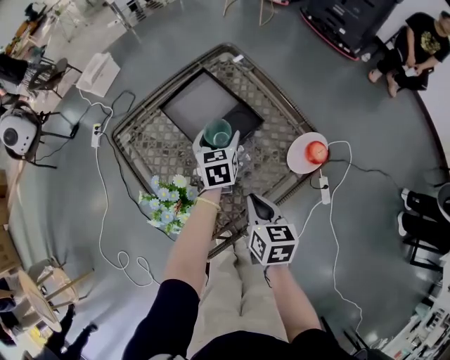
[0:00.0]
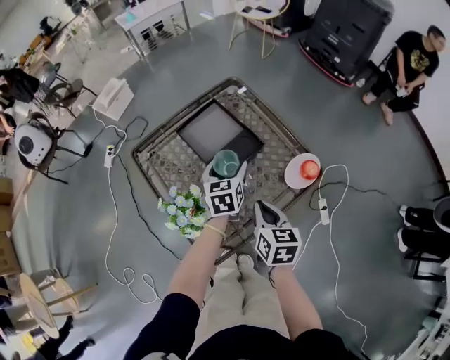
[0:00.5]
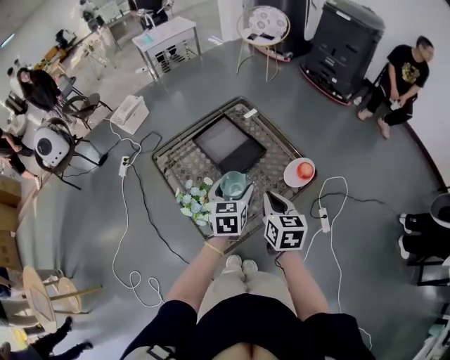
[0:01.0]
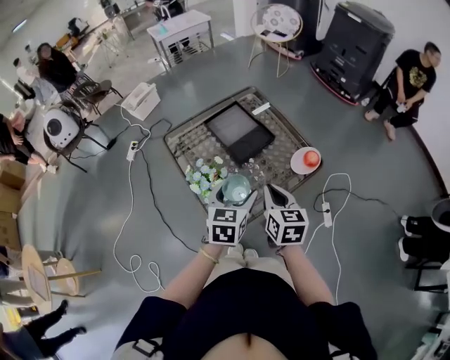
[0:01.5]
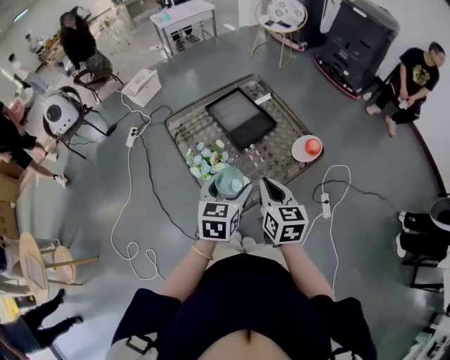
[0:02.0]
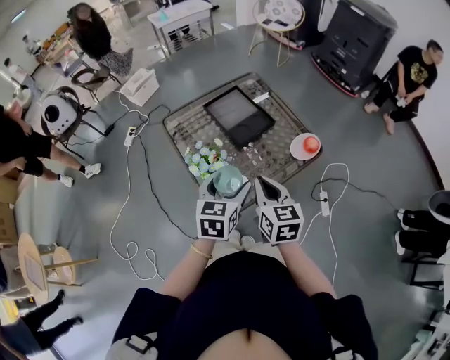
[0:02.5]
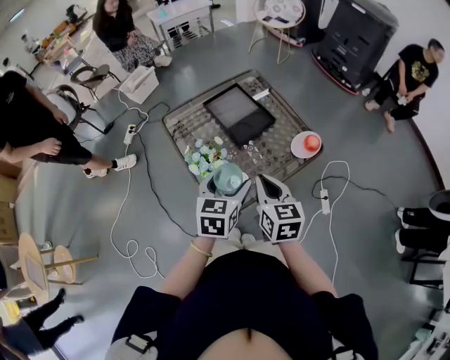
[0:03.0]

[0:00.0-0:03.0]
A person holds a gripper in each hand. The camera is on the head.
0:00.0 to 0:01.5: The right gripper is displaced upward and backward by approximately 15 cm; the left gripper goes some 35 cm backward and upward.
0:01.5 to 0:03.0: The grippers stay close to where they were, moving slightly.

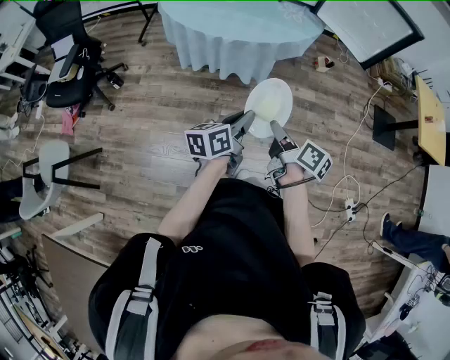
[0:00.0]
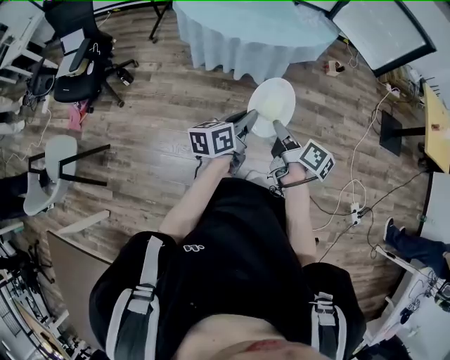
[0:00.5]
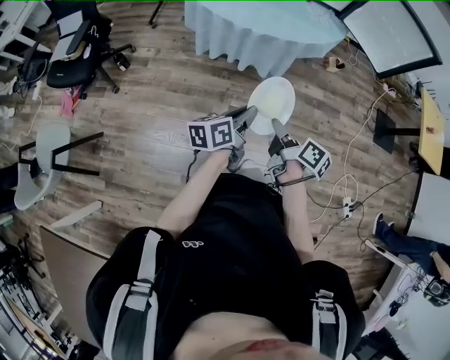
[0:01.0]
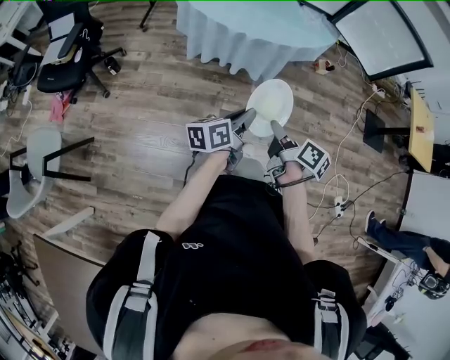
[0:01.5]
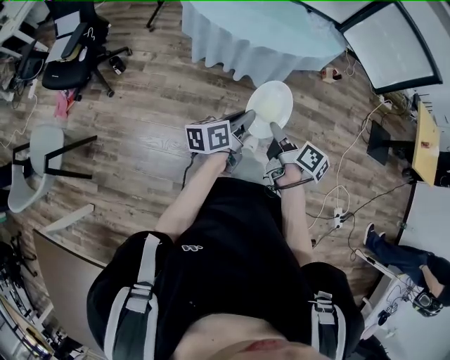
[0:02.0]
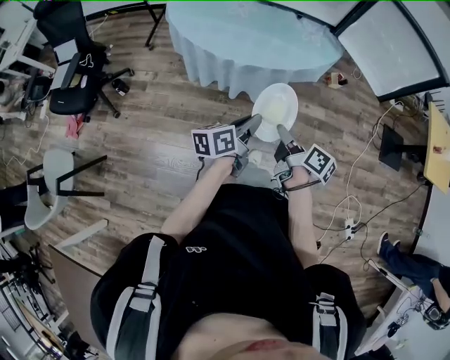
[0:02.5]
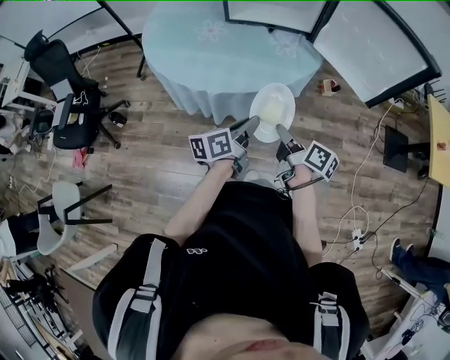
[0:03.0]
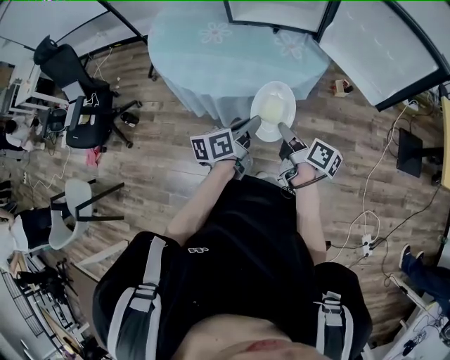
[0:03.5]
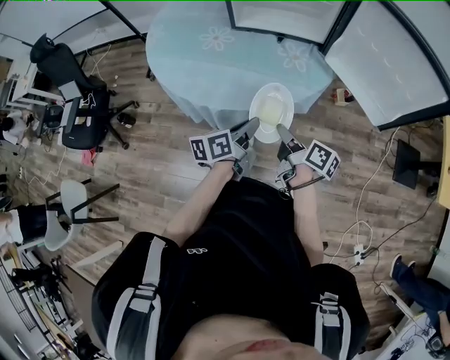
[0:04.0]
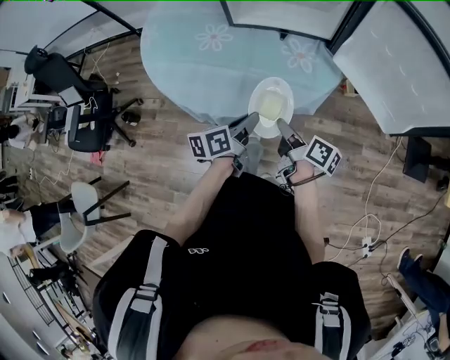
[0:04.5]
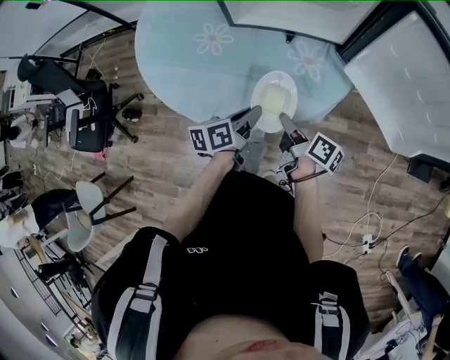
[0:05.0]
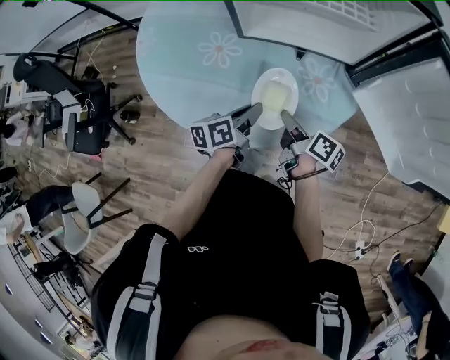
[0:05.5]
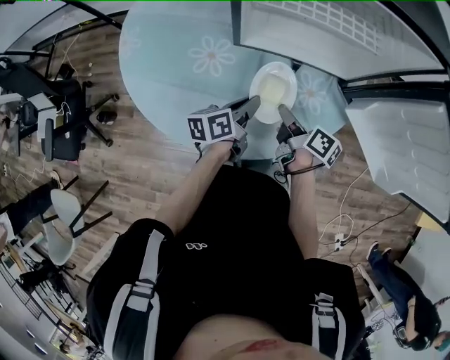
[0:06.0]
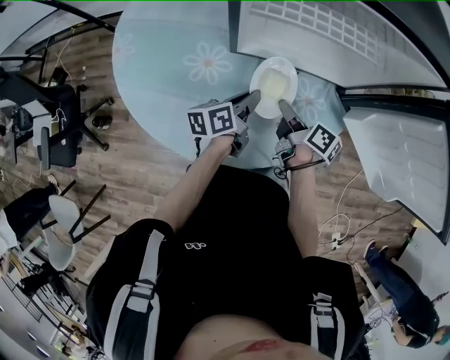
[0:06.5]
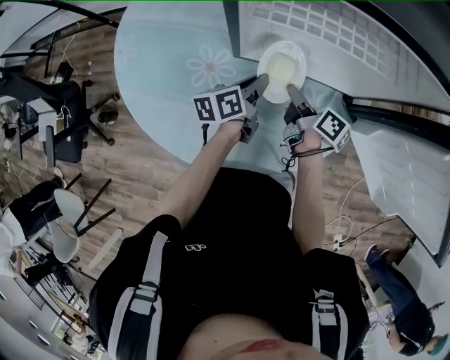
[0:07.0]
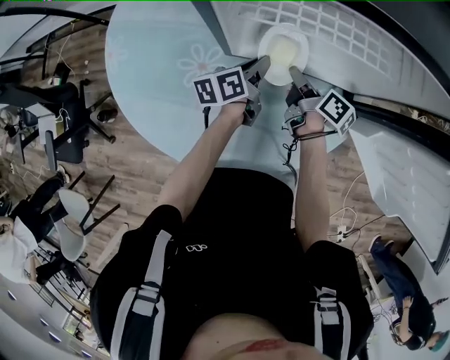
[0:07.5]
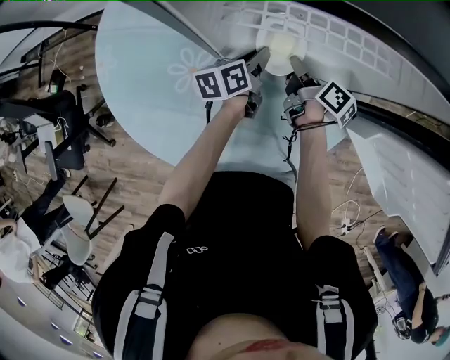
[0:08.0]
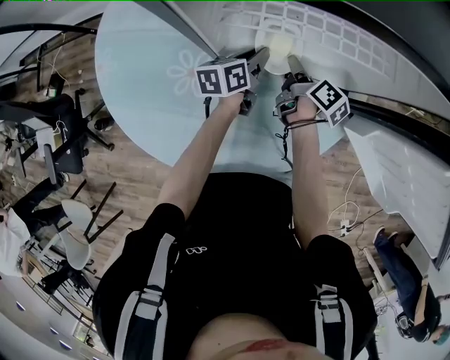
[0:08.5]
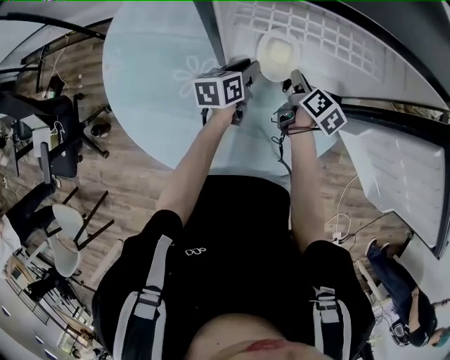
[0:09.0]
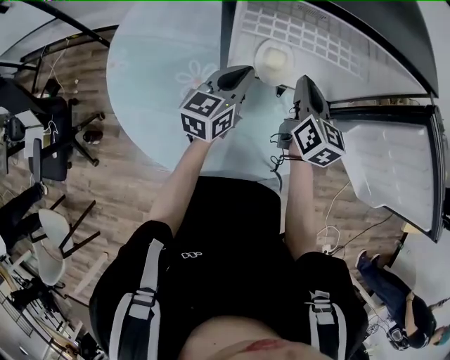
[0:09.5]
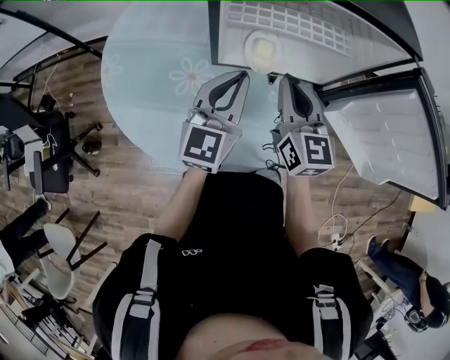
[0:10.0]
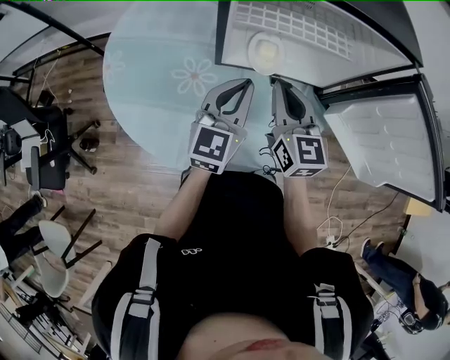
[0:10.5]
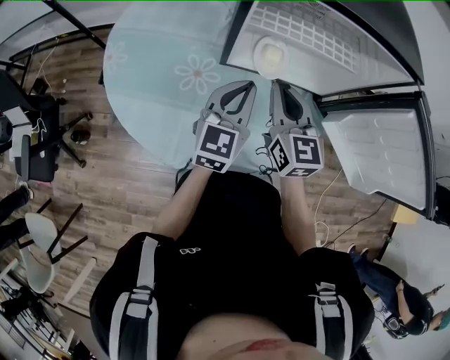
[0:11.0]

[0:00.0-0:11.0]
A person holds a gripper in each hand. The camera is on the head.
0:00.0 to 0:02.0: Both grippers move to the left, some 10 cm.
0:02.0 to 0:03.5: The grippers both shift forward and to the right by some 30 cm.
0:03.5 to 0:05.5: The two grippers go roughly 25 cm forward.
0:05.5 to 0:07.5: The grippers both shift forward by about 25 cm.
0:07.5 to 0:09.0: The right gripper swivels some 20 degrees.
0:09.0 to 0:11.0: The left gripper goes some 20 cm upward and backward, rotates some 40 degrees, and closes its fingers. Meanwhile the right gripper travels upward, backward and to the left by some 25 cm, and rotates around the line of its fingers by some 50 degrees, counterclockwise from behind.

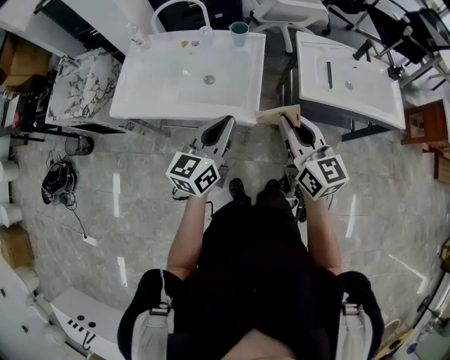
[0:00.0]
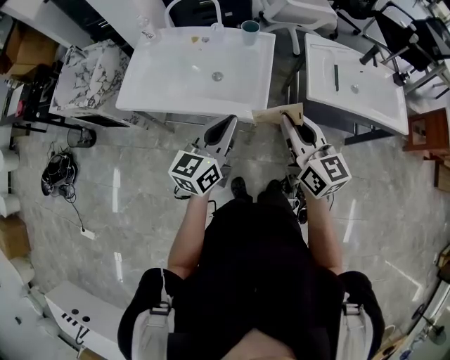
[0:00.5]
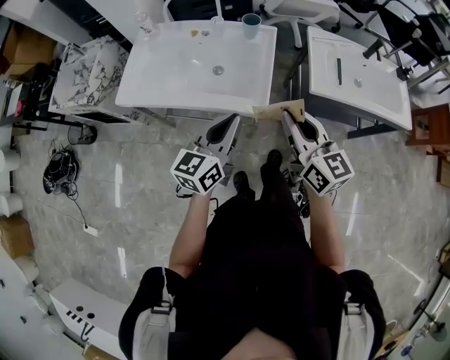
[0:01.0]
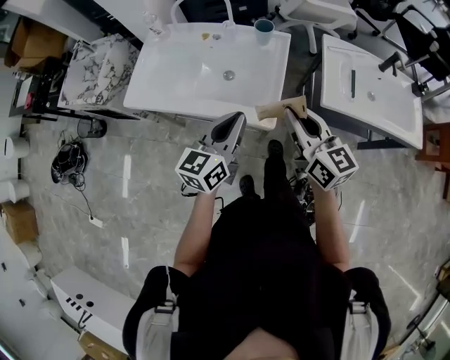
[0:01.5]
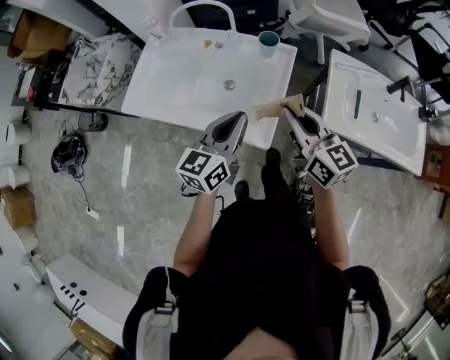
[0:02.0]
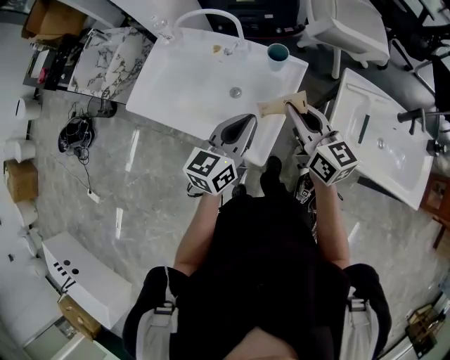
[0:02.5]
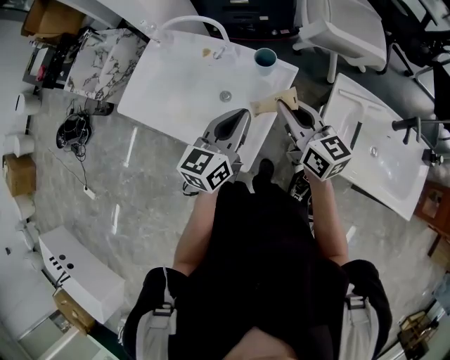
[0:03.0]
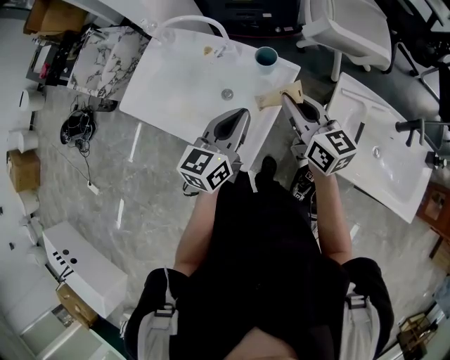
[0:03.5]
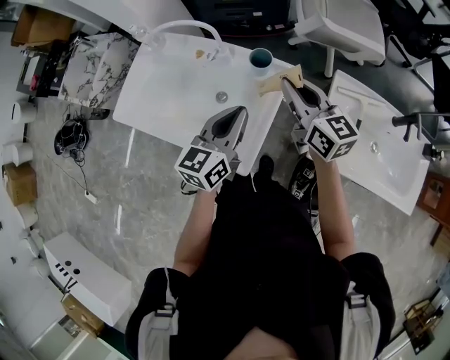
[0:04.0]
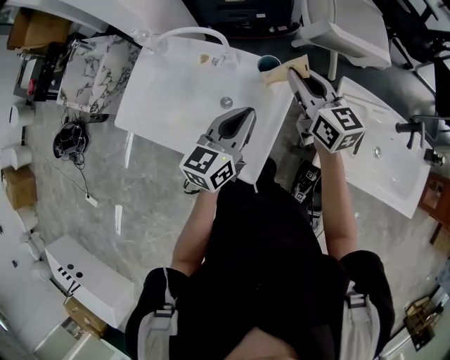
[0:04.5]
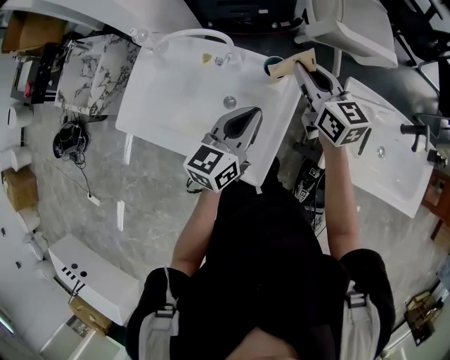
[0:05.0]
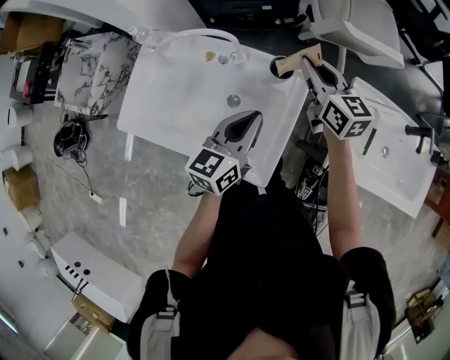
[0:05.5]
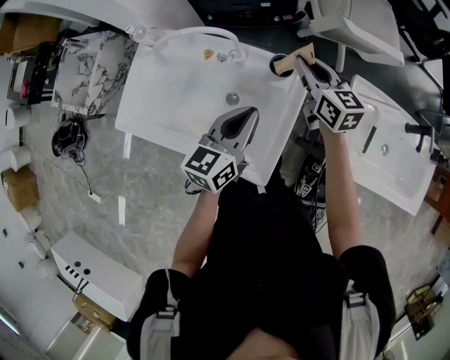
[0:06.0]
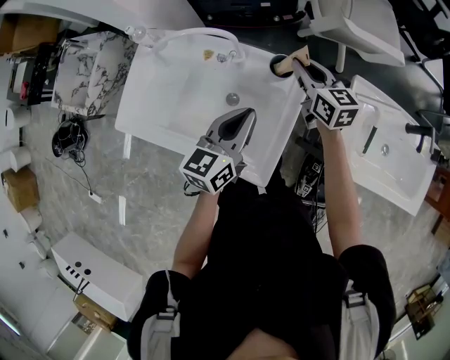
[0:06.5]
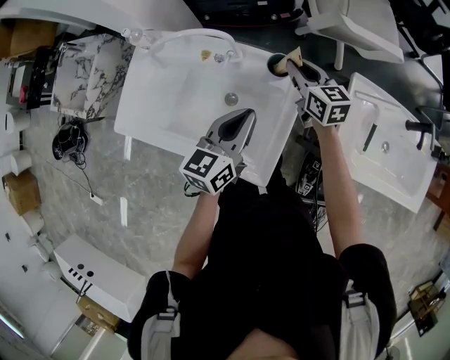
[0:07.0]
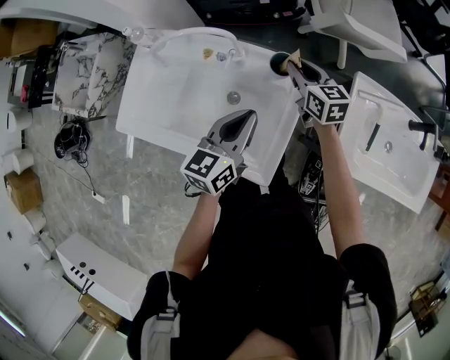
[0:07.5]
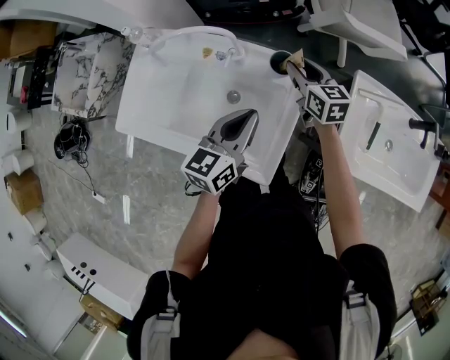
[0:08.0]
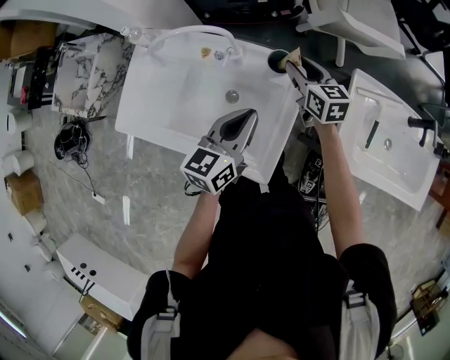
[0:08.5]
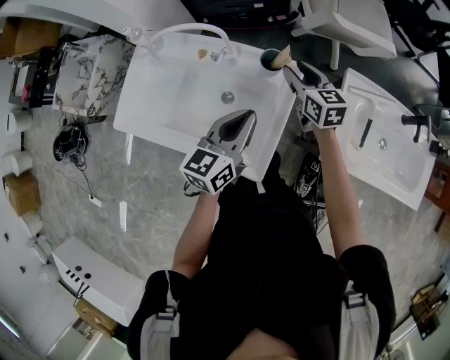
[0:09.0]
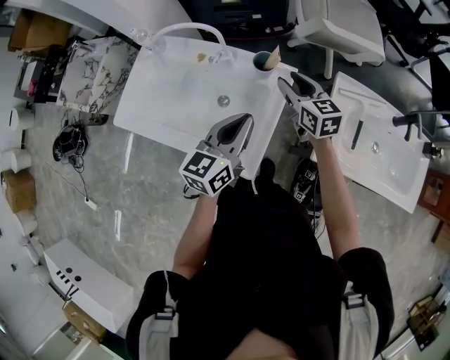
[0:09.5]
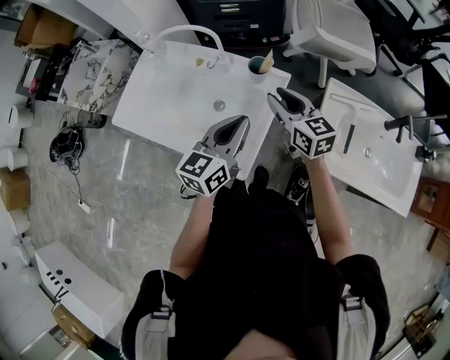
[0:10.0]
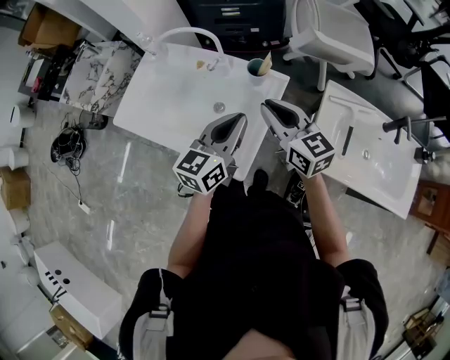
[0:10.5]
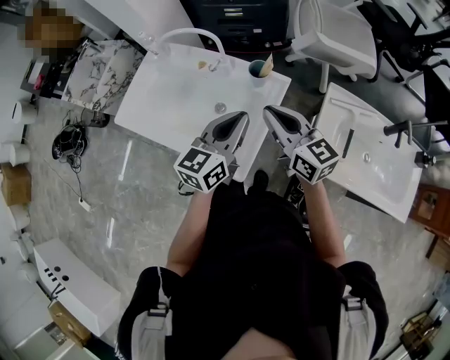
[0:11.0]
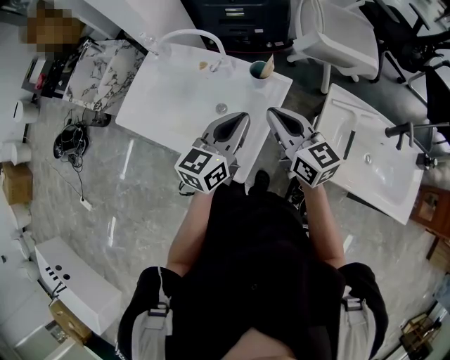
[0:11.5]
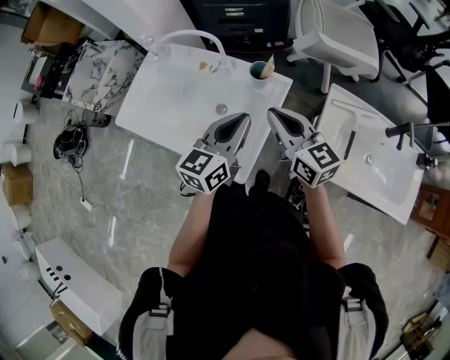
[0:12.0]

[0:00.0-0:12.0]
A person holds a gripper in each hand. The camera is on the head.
0:00.0 to 0:02.0: The two grippers go approximately 15 cm forward.
0:02.0 to 0:04.0: The grippers both shift forward and to the right by about 15 cm.
0:04.0 to 0:06.0: The left gripper travels forward by approximately 5 cm. The right gripper goes about 15 cm forward and downward.
0:06.0 to 0:08.0: The right gripper moves downward, approximately 10 cm, and opens up.
0:08.0 to 0:10.0: The right gripper travels backward and upward by about 15 cm, while the left gripper moves backward and to the right, about 10 cm.
0:10.0 to 0:12.0: The right gripper is displaced upward by about 5 cm, and closes its fingers.

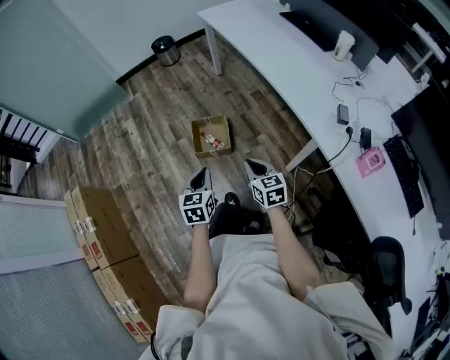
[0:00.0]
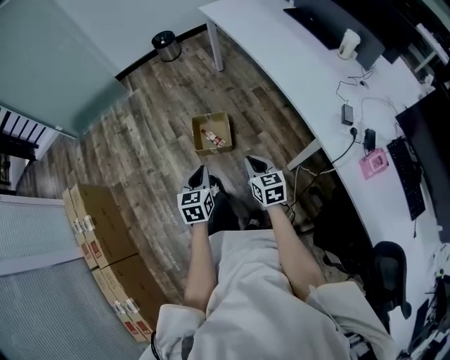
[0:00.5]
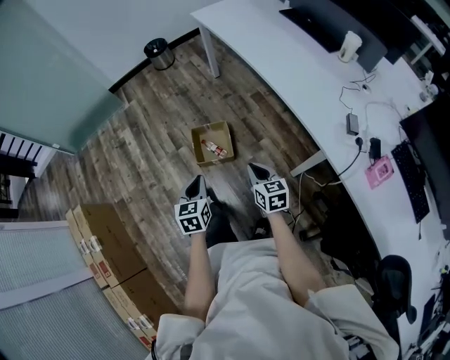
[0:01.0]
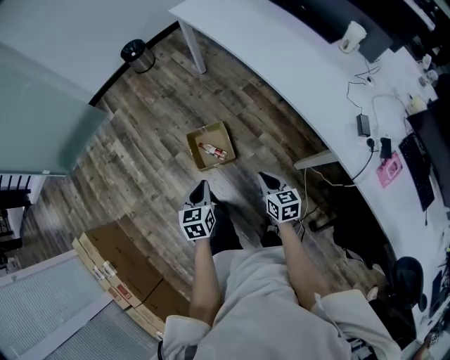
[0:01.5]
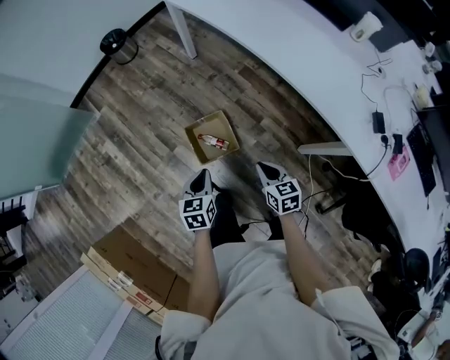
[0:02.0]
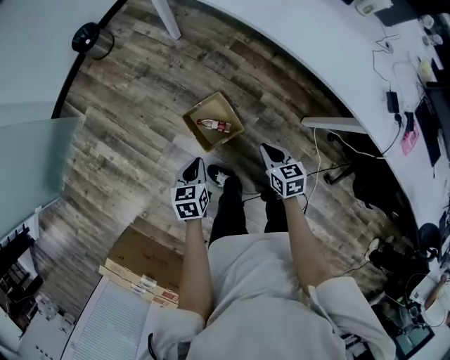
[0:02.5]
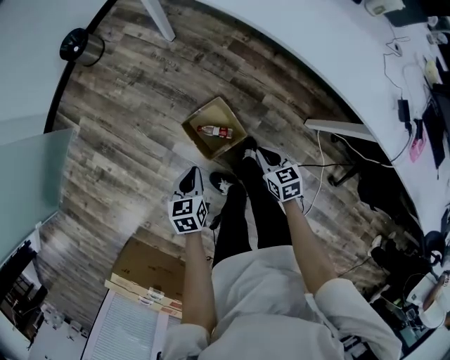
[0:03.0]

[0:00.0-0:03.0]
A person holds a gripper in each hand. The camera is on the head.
0:00.0 to 0:01.5: The right gripper shifts about 15 cm forward and downward; the left gripper heads forward, covering some 20 cm.
0:01.5 to 0:03.0: The right gripper goes some 30 cm forward, downward and to the left. Meanwhile the left gripper shifts approximately 30 cm forward, to the left and downward, and turns by about 20 degrees.
